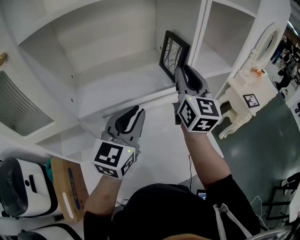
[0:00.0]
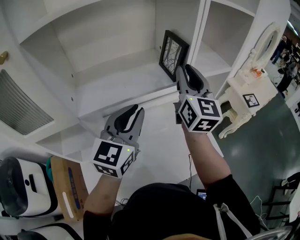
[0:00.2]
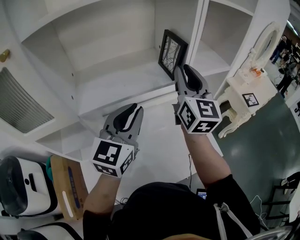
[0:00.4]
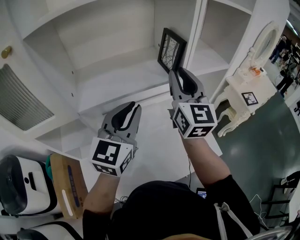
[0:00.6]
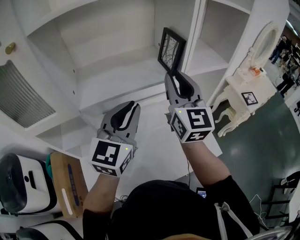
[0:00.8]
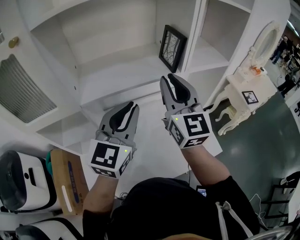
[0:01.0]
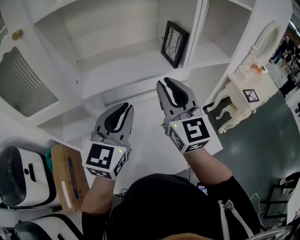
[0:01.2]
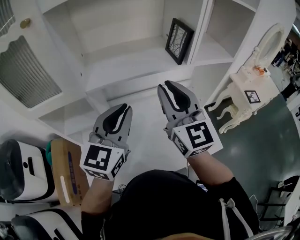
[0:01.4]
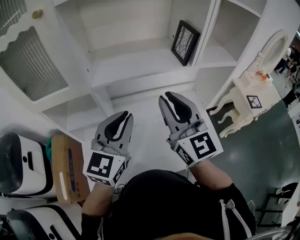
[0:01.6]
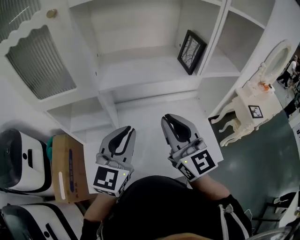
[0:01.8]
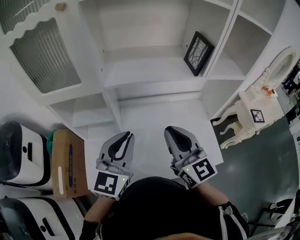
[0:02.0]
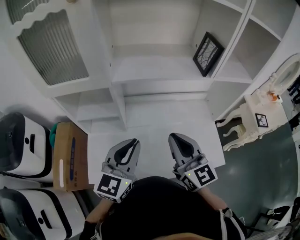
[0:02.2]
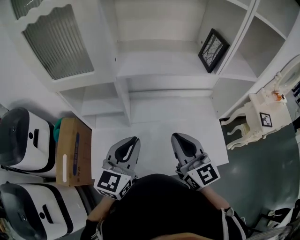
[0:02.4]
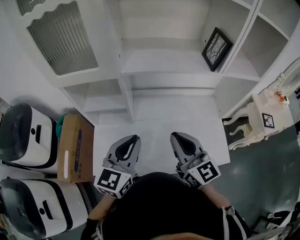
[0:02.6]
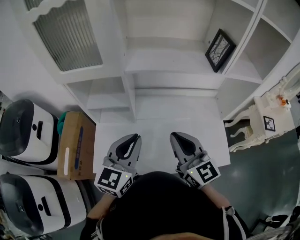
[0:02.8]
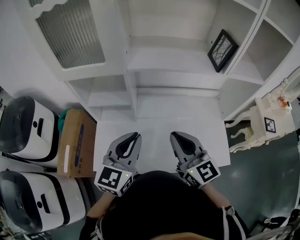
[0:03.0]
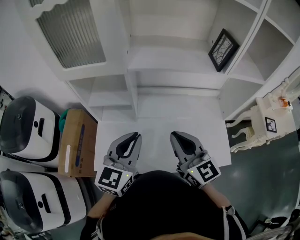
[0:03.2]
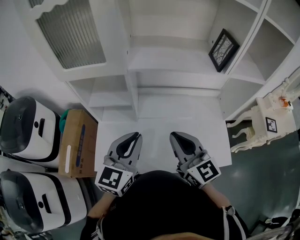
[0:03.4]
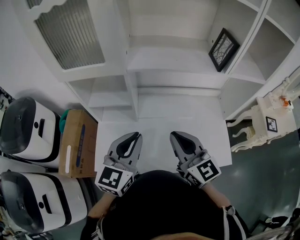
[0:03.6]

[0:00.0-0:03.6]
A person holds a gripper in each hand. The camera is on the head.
0:00.0 to 0:01.8: The left gripper shifts roughly 15 cm backward and to the left, while the right gripper goes about 25 cm backward and to the left, and turns by about 30 degrees.
0:01.8 to 0:03.6: The right gripper shifts about 10 cm downward, while the left gripper shifts by roughly 10 cm.

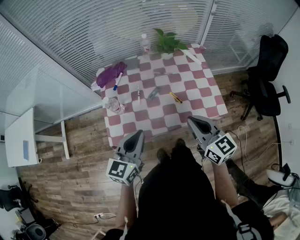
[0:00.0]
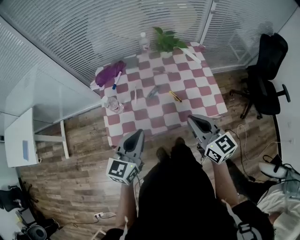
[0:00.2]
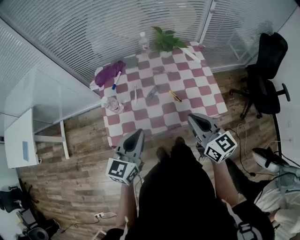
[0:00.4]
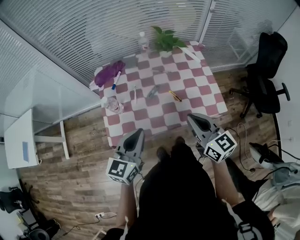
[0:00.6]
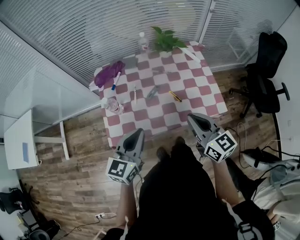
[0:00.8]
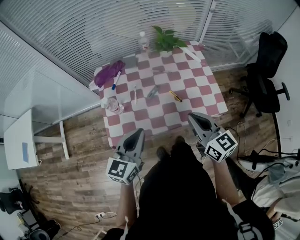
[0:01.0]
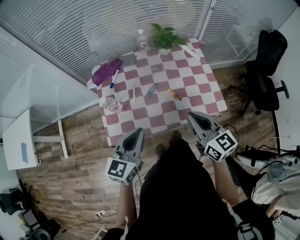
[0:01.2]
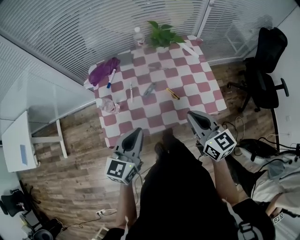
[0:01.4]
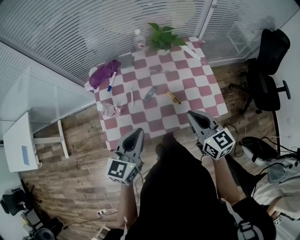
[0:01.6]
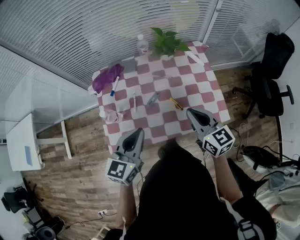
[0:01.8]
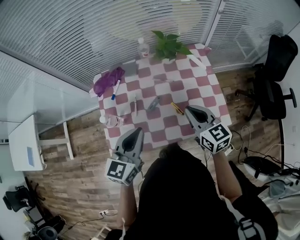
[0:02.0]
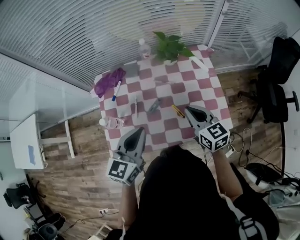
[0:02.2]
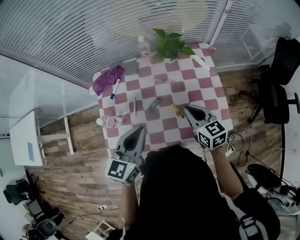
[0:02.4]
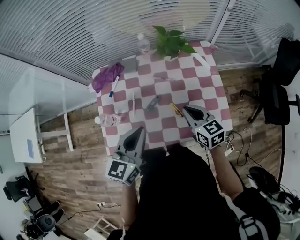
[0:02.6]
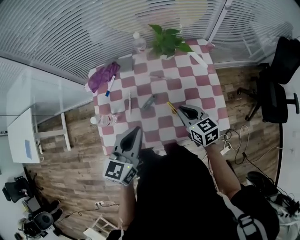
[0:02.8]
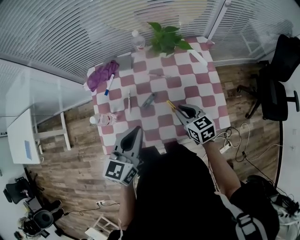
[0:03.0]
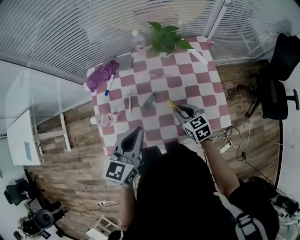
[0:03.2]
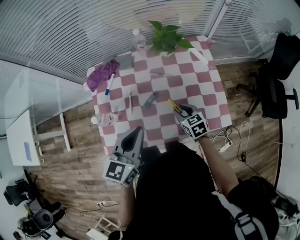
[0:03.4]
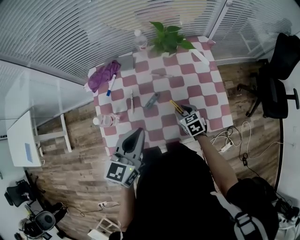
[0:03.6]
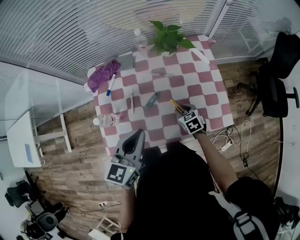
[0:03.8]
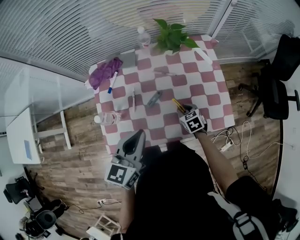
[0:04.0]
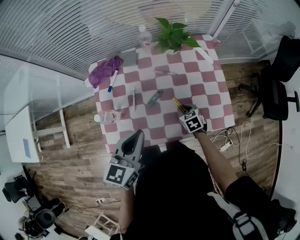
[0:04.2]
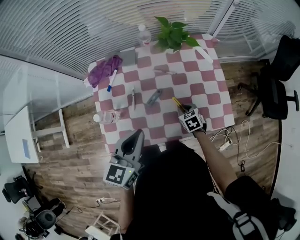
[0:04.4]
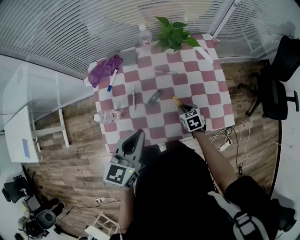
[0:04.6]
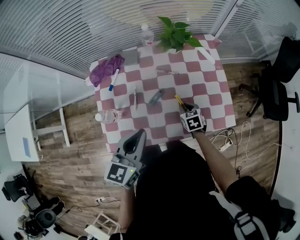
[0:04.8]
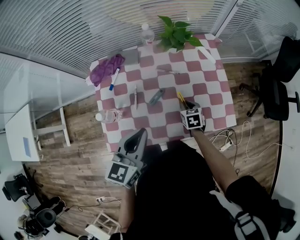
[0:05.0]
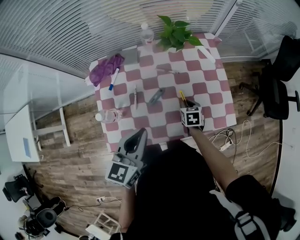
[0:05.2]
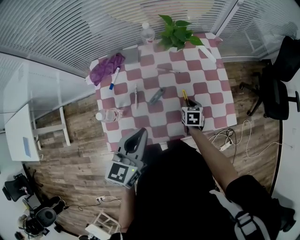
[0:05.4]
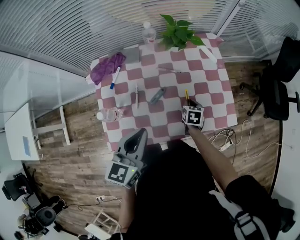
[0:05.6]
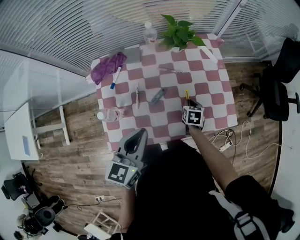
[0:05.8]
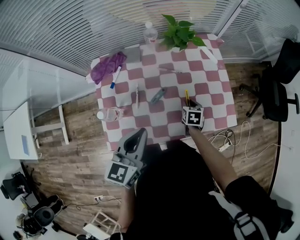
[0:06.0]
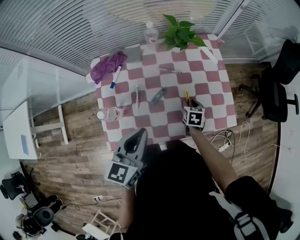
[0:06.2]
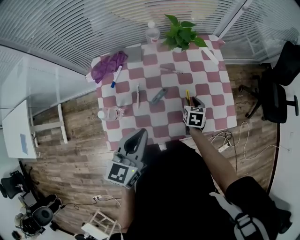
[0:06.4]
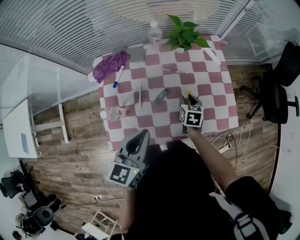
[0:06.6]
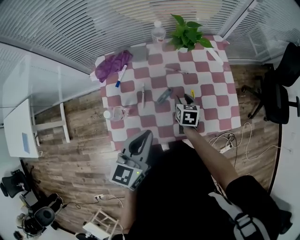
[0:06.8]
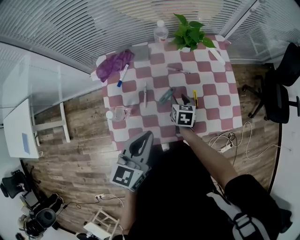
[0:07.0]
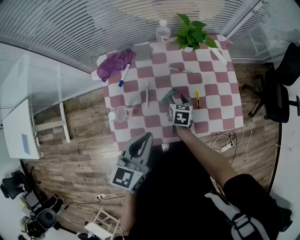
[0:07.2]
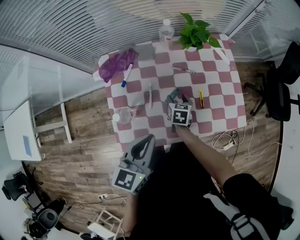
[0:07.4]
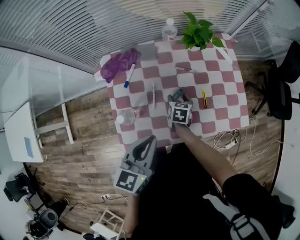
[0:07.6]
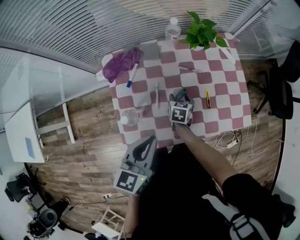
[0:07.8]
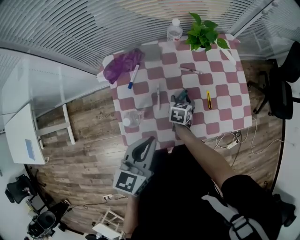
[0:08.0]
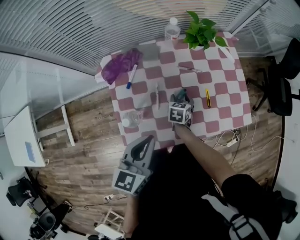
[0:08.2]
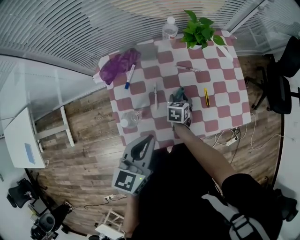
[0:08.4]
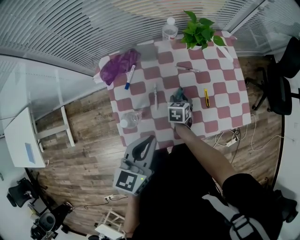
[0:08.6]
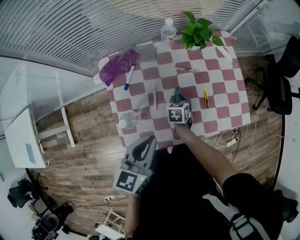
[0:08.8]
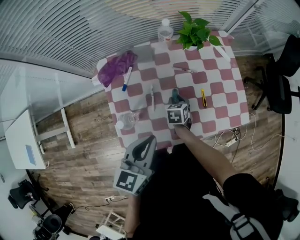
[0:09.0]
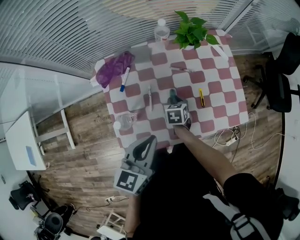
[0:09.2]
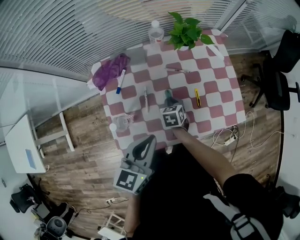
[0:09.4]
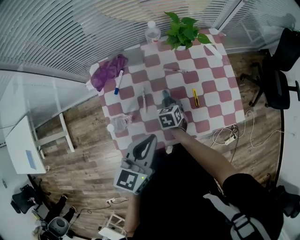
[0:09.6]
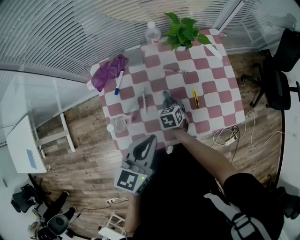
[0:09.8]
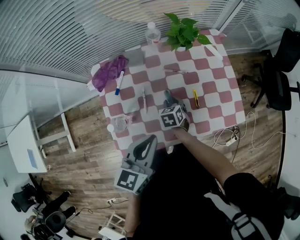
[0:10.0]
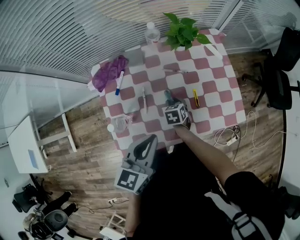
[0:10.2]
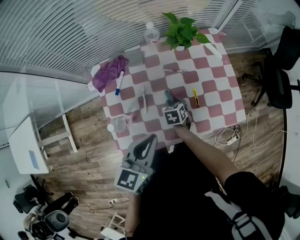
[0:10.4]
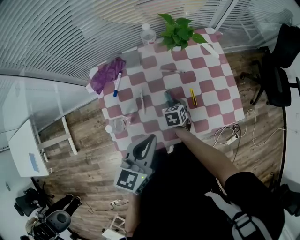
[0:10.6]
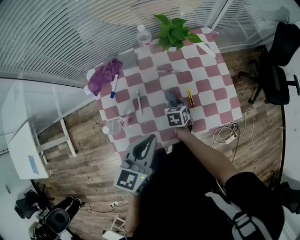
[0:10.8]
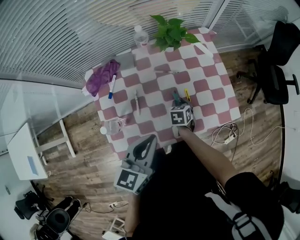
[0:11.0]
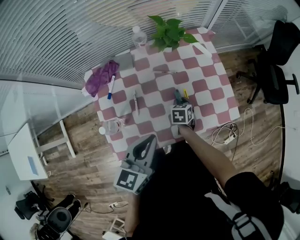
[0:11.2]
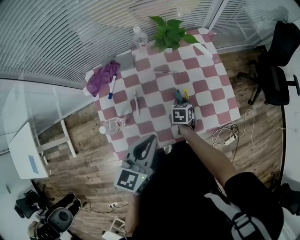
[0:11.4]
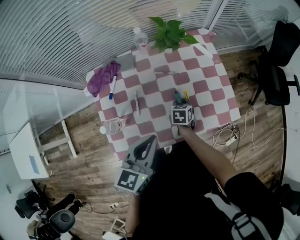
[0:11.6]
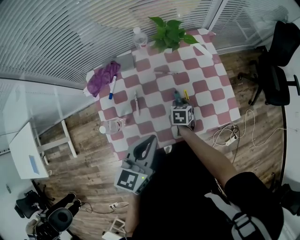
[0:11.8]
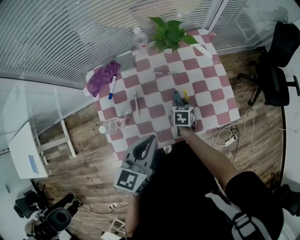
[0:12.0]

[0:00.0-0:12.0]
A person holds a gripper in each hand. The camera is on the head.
0:00.0 to 0:01.6: The two grippers go approximately 5 cm forward.
0:01.6 to 0:03.0: The right gripper is displaced downward and forward by approximately 20 cm, and rotates about 20 degrees. The left gripper moves forward, about 10 cm.
0:03.0 to 0:04.4: The right gripper travels downward by roughly 15 cm, and turns by about 20 degrees.
0:04.4 to 0:06.0: The right gripper swivels approximately 30 degrees.
0:06.0 to 0:07.6: The right gripper travels to the left by roughly 15 cm, and opens up. Meanwhile the left gripper travels to the left by some 5 cm.
0:07.6 to 0:09.0: The right gripper closes up.
0:09.0 to 0:10.4: The left gripper changes place by about 5 cm.
0:10.4 to 0:12.0: The right gripper heads to the right, covering roughly 10 cm.

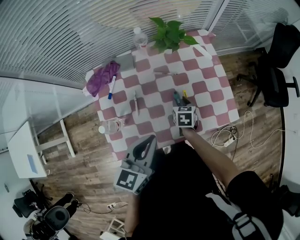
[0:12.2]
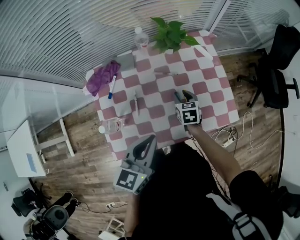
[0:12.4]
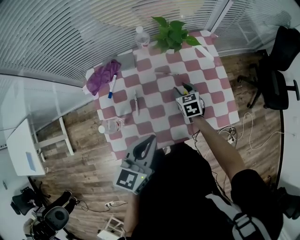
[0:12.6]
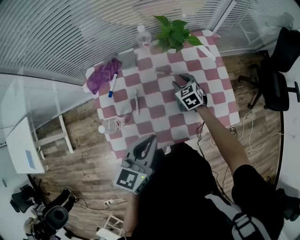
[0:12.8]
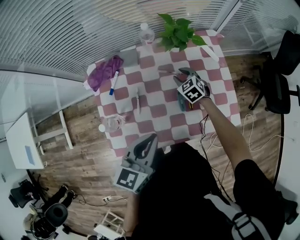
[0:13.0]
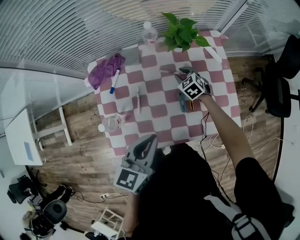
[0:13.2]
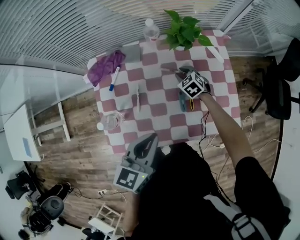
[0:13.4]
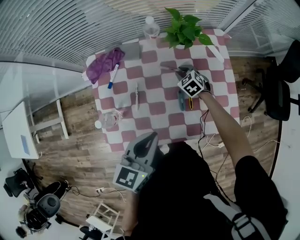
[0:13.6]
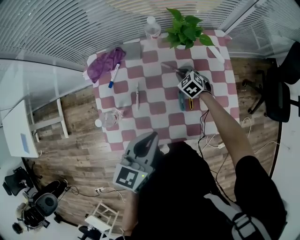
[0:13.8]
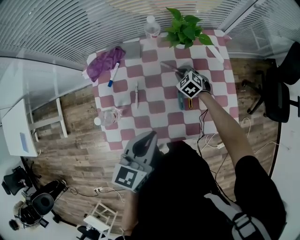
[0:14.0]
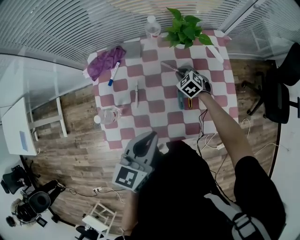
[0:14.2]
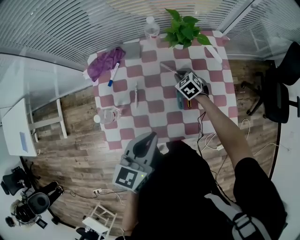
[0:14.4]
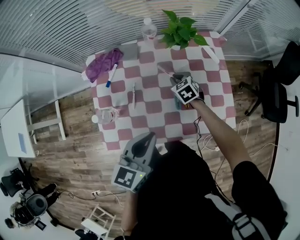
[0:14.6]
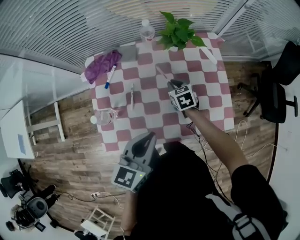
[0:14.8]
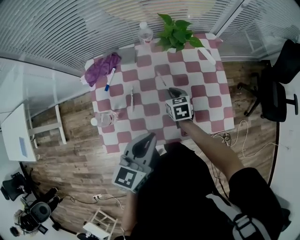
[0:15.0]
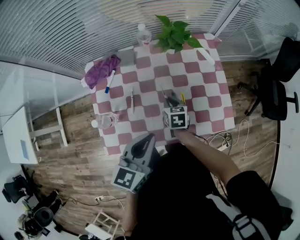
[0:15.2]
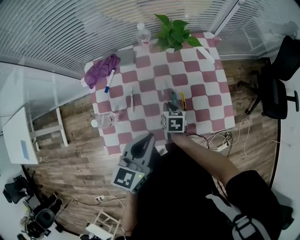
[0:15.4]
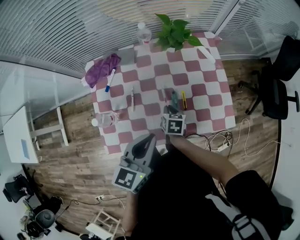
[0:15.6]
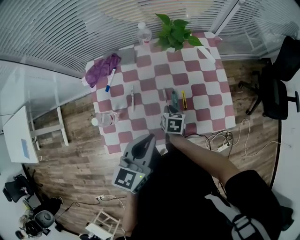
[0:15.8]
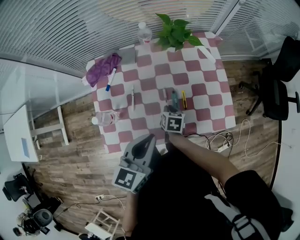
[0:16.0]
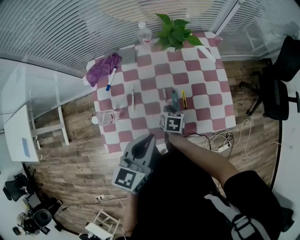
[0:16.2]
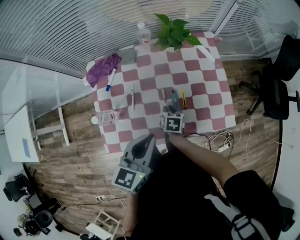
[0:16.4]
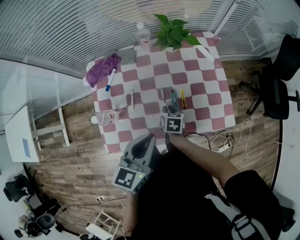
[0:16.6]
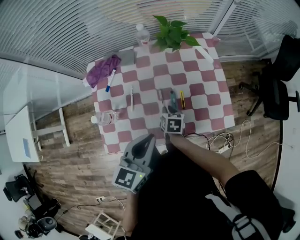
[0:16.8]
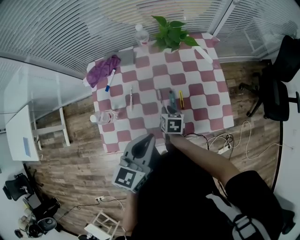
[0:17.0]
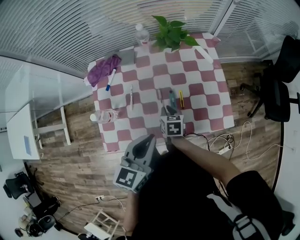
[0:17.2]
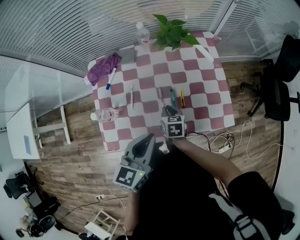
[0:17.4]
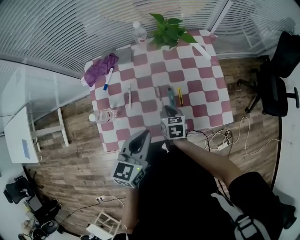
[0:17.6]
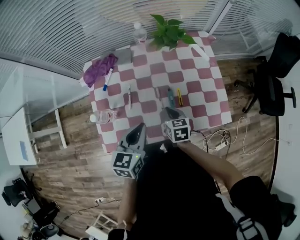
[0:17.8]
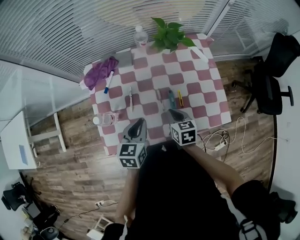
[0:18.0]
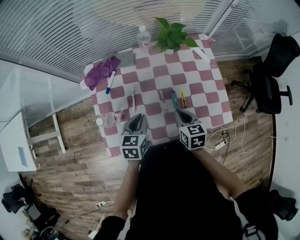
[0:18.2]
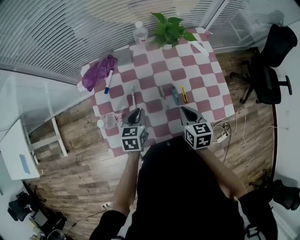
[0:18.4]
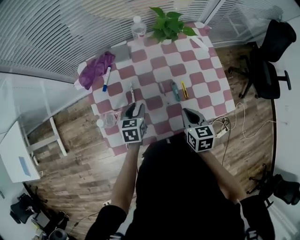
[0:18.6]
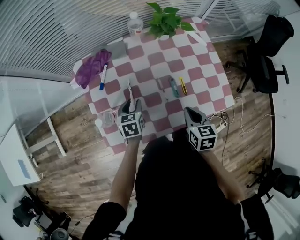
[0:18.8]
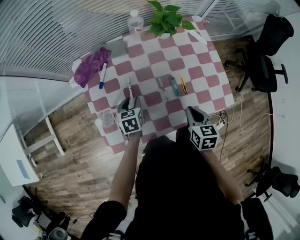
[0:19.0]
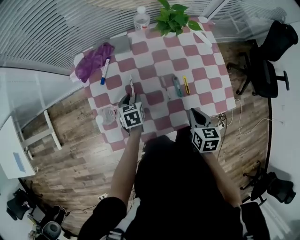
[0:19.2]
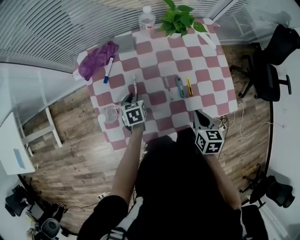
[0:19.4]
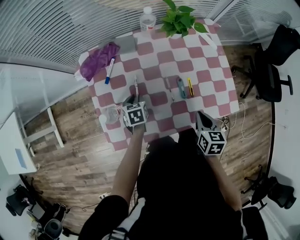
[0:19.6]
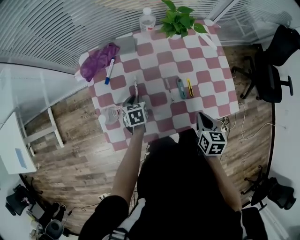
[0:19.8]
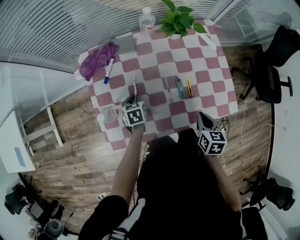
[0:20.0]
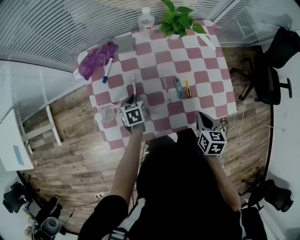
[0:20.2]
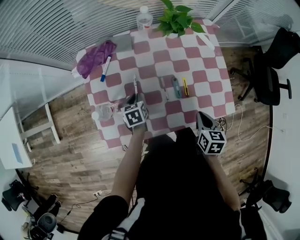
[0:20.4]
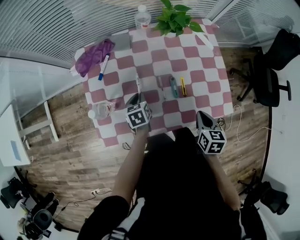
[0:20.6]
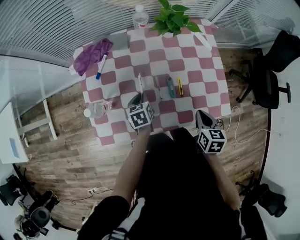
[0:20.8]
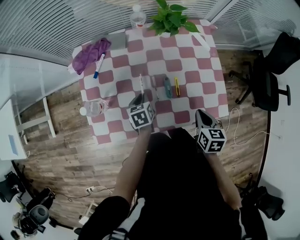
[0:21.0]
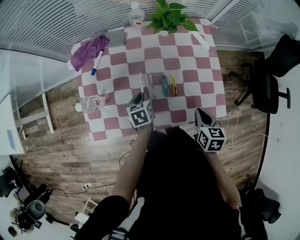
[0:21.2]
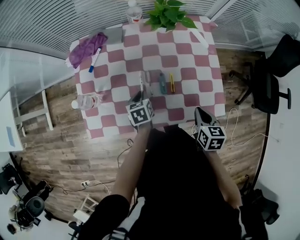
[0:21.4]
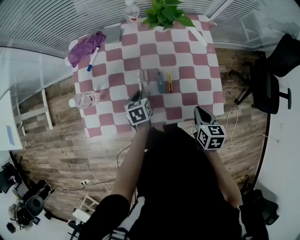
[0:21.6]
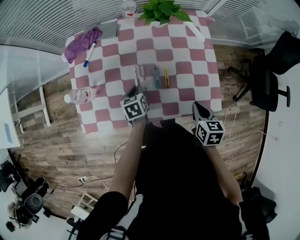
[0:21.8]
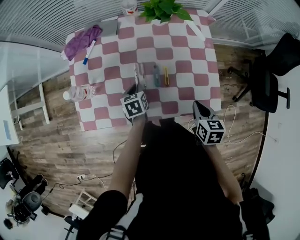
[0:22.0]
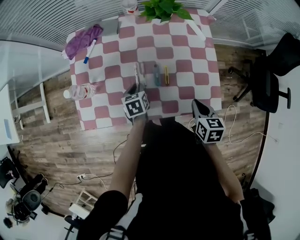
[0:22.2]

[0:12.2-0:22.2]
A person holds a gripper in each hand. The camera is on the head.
0:12.2 to 0:13.6: The right gripper is displaced forward by approximately 15 cm, and rolls counterclockwise, seen from behind, by about 50 degrees.
0:13.6 to 0:15.0: The right gripper shifts roughly 10 cm backward and upward, and swivels some 40 degrees.
0:15.0 to 0:16.4: The right gripper moves backward and downward, some 10 cm, and turns by approximately 20 degrees.
0:16.4 to 0:18.0: The left gripper moves downward and to the left, some 10 cm. The right gripper heads upward, covering roughly 10 cm.
0:18.0 to 0:19.4: The right gripper travels to the right by approximately 5 cm. The left gripper goes roughly 20 cm downward, to the left and forward, turns by some 20 degrees, and opens its fingers.
0:19.4 to 0:20.8: Both grippers move to the right, approximately 10 cm.
0:20.8 to 0:22.2: Both grippers travel together to the right, approximately 5 cm.
